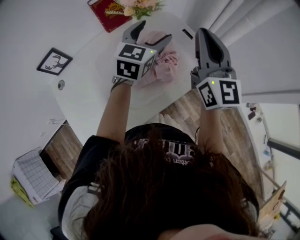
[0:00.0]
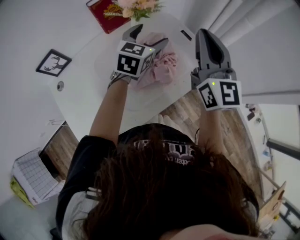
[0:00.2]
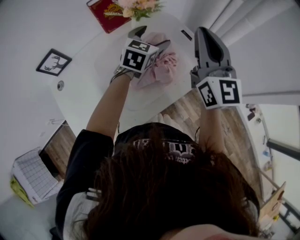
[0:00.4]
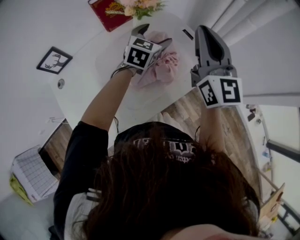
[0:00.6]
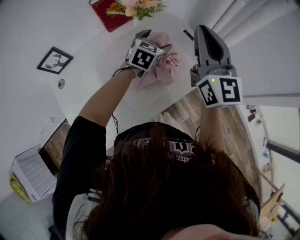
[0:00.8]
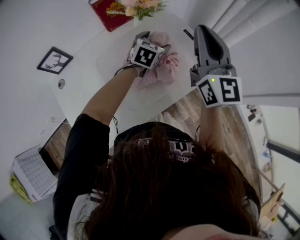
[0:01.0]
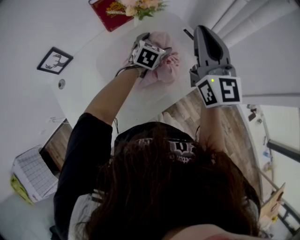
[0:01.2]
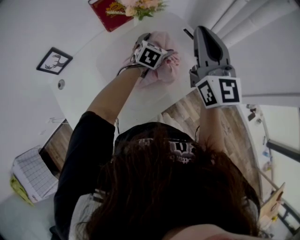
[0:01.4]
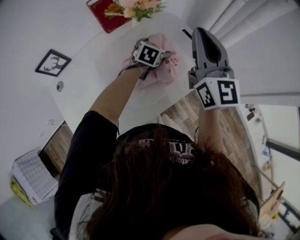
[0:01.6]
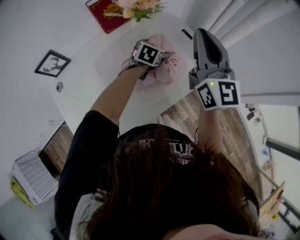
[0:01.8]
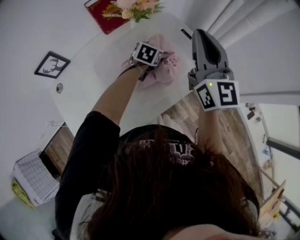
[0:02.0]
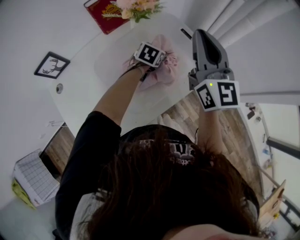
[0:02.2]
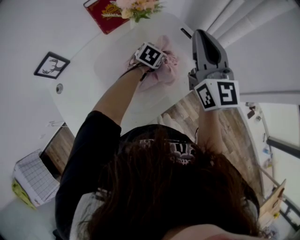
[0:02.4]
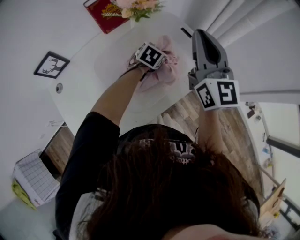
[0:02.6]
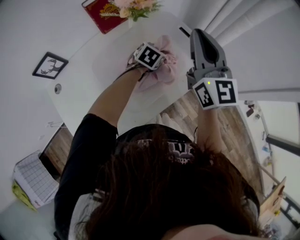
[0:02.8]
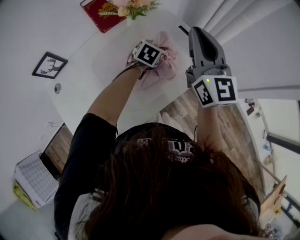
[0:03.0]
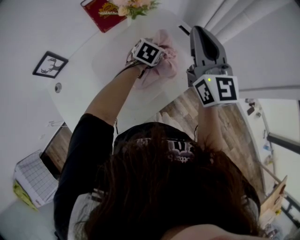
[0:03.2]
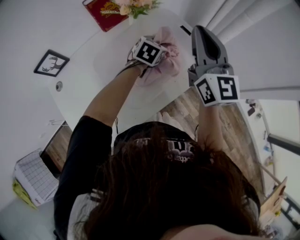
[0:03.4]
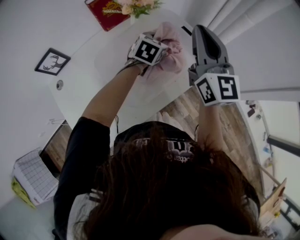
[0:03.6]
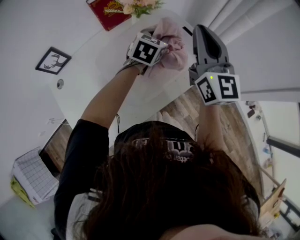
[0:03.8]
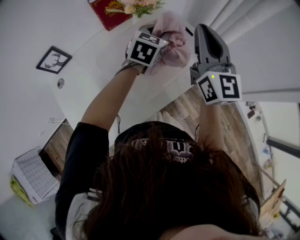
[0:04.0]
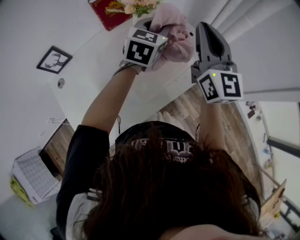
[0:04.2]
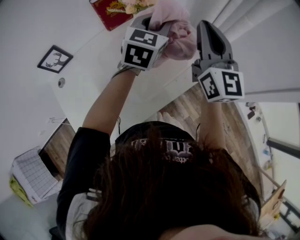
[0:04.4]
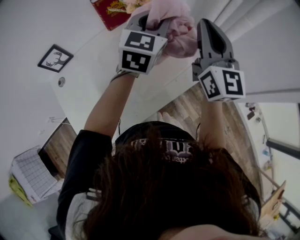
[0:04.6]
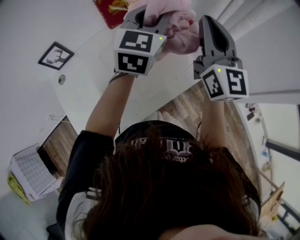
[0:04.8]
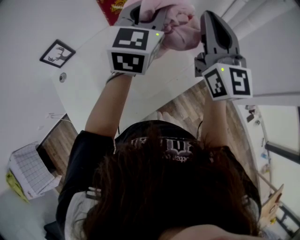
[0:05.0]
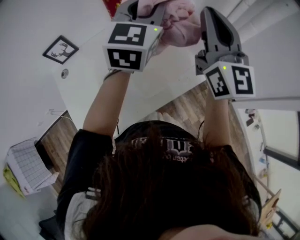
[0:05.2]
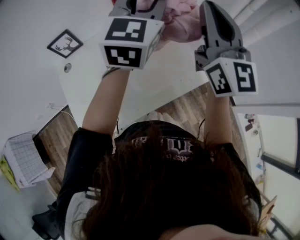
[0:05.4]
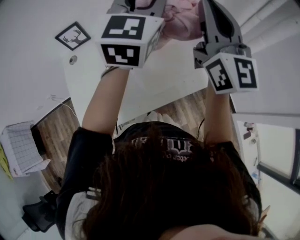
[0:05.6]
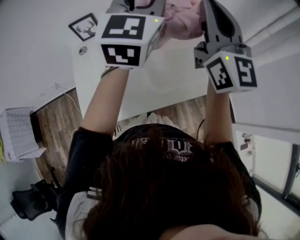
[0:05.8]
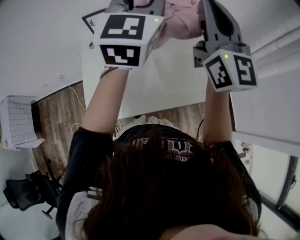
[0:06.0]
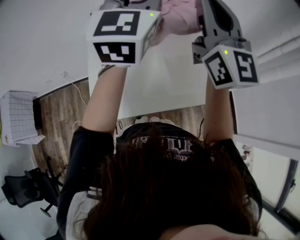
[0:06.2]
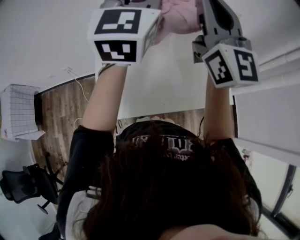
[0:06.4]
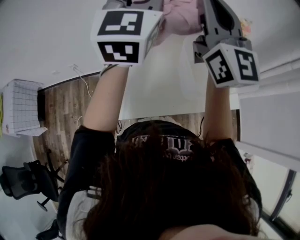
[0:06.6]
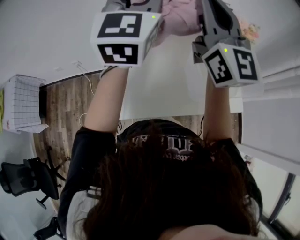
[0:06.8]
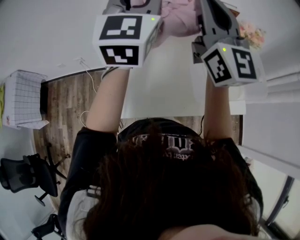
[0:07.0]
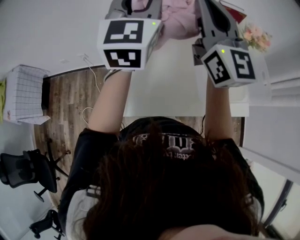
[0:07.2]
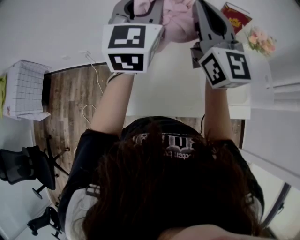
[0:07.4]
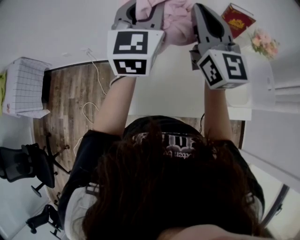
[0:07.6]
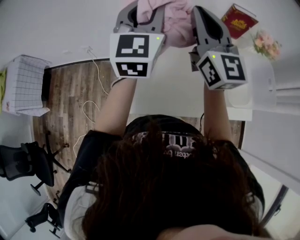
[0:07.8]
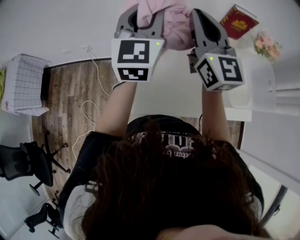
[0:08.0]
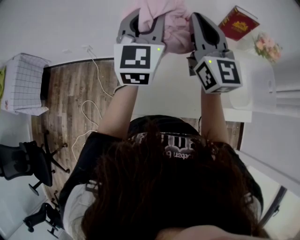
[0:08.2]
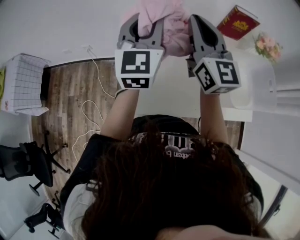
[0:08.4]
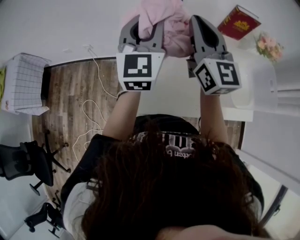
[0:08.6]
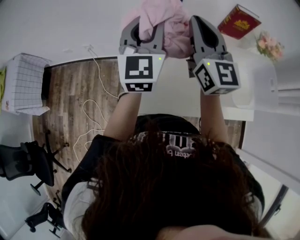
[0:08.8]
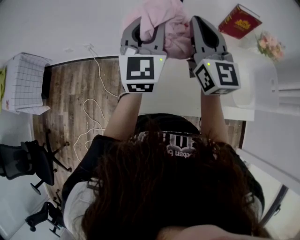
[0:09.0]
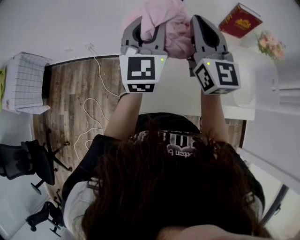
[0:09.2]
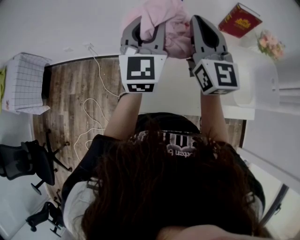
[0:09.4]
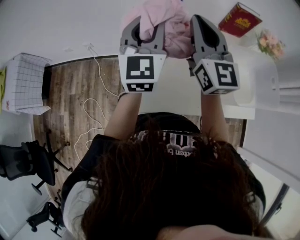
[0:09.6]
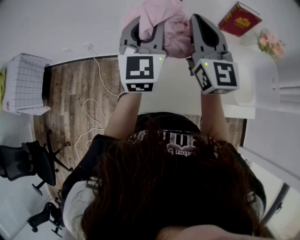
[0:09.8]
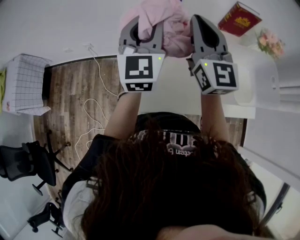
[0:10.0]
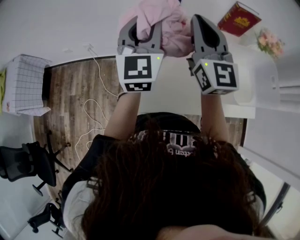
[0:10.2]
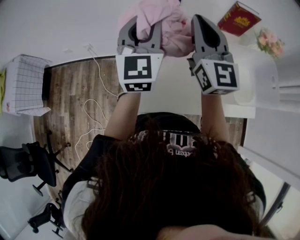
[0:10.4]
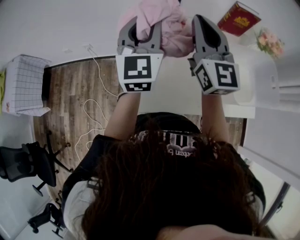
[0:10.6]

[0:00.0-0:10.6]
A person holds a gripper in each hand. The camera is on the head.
0.0 to 1.6 s: The left gripper goes roughly 20 cm downward, and changes its angle by approximately 30 degrees.
1.6 to 3.0 s: The left gripper closes.
3.0 to 4.6 s: The left gripper goes roughly 25 cm upward, and tips its fingers upward by approximately 40 degrees.
4.6 to 6.0 s: The right gripper ends up roughly 20 cm from where it was, and swivels some 30 degrees; the left gripper moves approximately 25 cm, and rotates about 30 degrees.
6.0 to 7.6 s: The grippers both shift to the left by approximately 25 cm.
7.6 to 9.0 s: The grippers both shift downward by about 5 cm.
9.0 to 10.6 s: Both grippers stay about where they are.

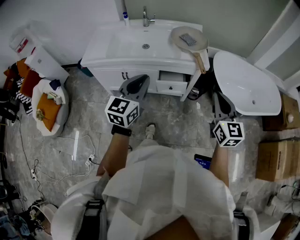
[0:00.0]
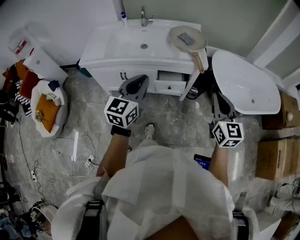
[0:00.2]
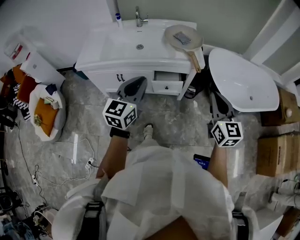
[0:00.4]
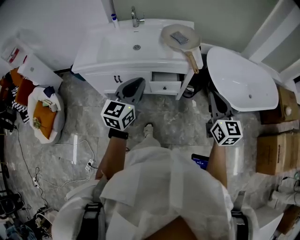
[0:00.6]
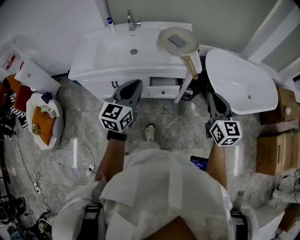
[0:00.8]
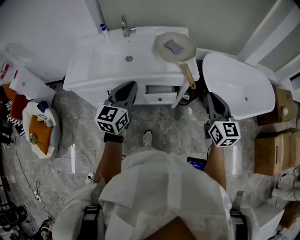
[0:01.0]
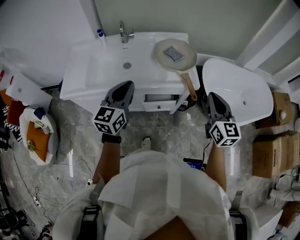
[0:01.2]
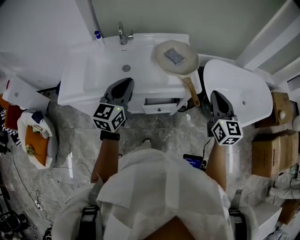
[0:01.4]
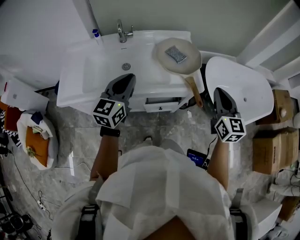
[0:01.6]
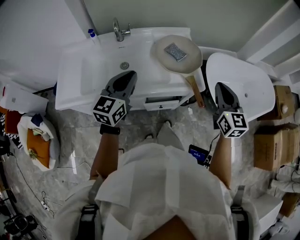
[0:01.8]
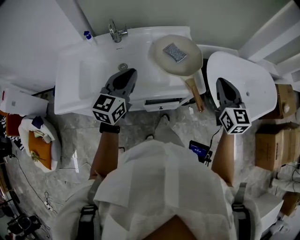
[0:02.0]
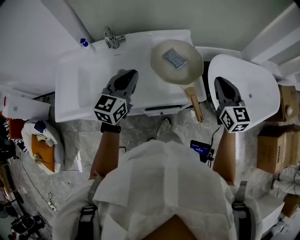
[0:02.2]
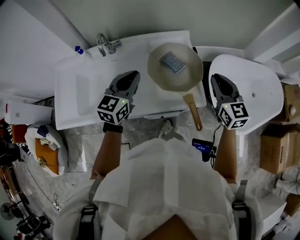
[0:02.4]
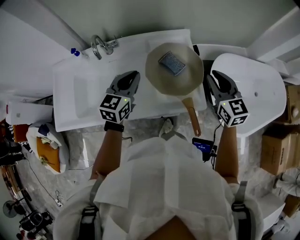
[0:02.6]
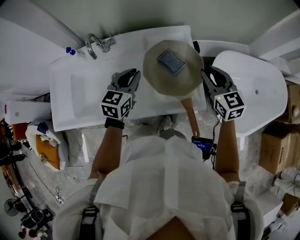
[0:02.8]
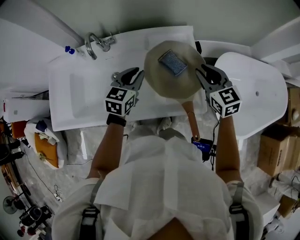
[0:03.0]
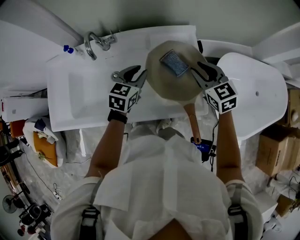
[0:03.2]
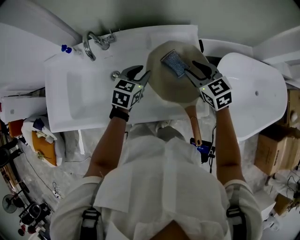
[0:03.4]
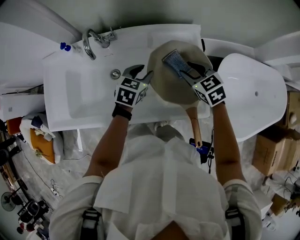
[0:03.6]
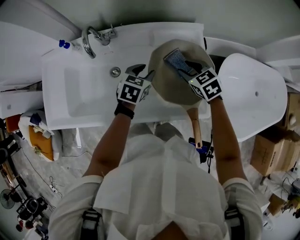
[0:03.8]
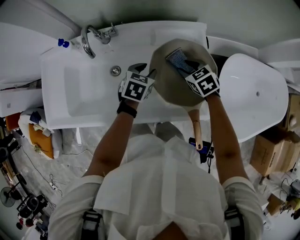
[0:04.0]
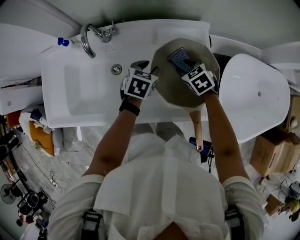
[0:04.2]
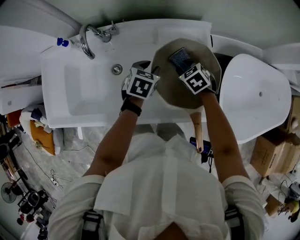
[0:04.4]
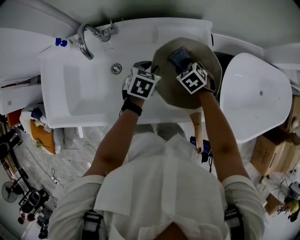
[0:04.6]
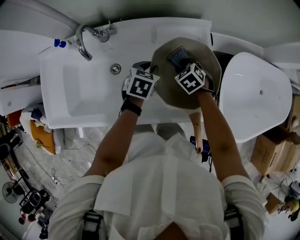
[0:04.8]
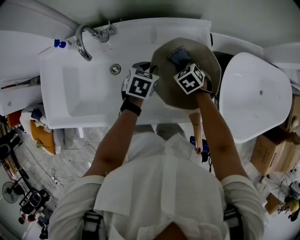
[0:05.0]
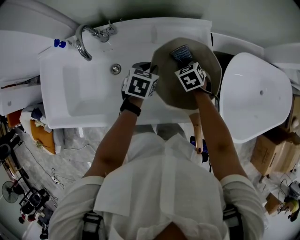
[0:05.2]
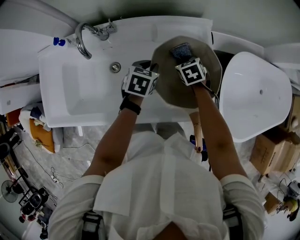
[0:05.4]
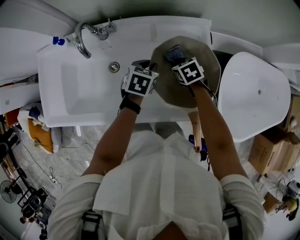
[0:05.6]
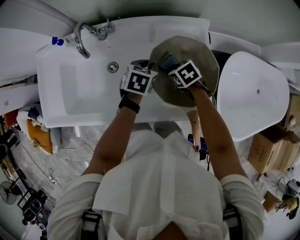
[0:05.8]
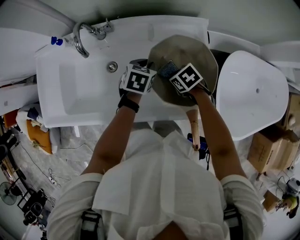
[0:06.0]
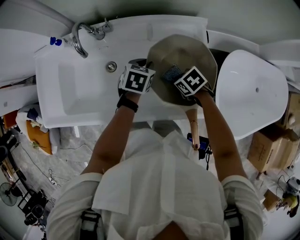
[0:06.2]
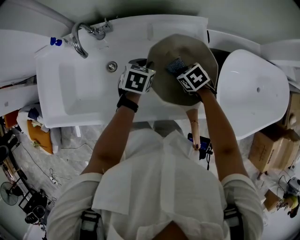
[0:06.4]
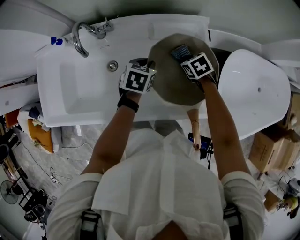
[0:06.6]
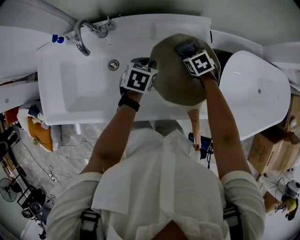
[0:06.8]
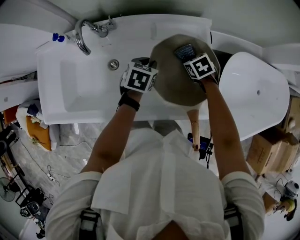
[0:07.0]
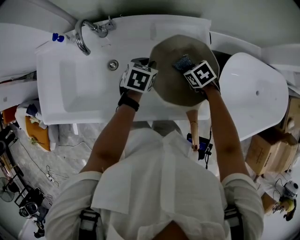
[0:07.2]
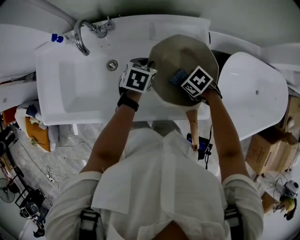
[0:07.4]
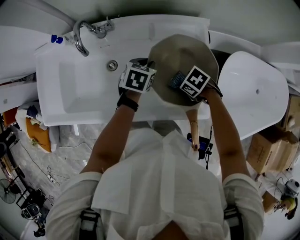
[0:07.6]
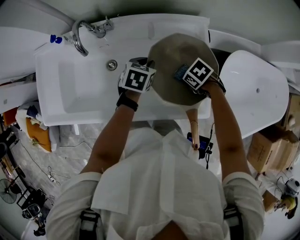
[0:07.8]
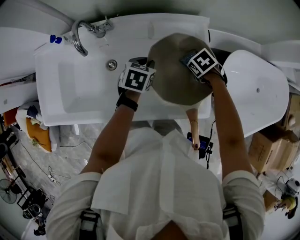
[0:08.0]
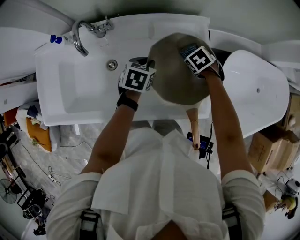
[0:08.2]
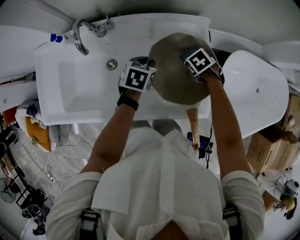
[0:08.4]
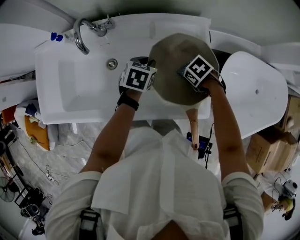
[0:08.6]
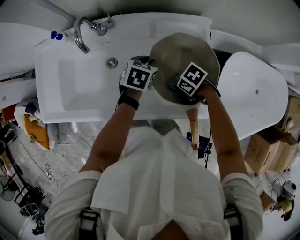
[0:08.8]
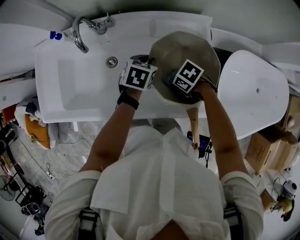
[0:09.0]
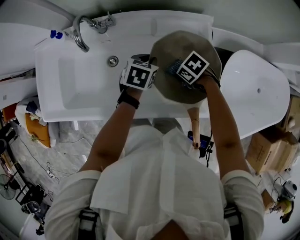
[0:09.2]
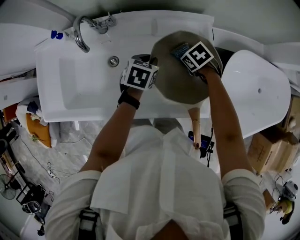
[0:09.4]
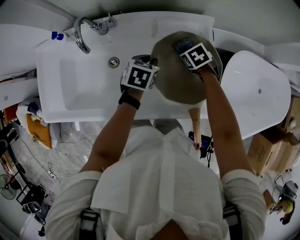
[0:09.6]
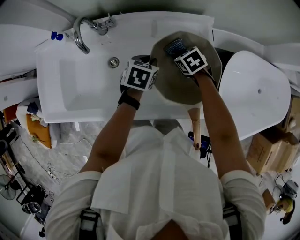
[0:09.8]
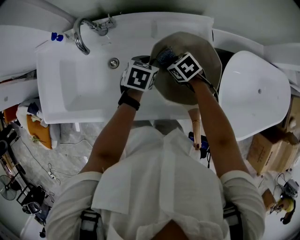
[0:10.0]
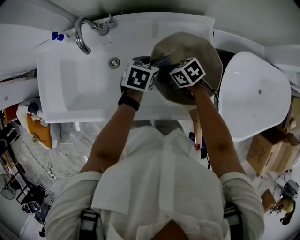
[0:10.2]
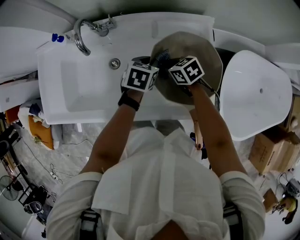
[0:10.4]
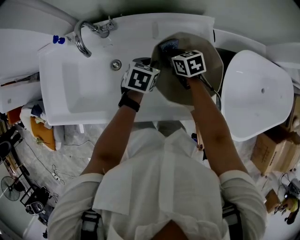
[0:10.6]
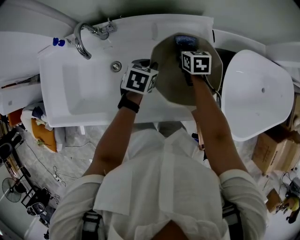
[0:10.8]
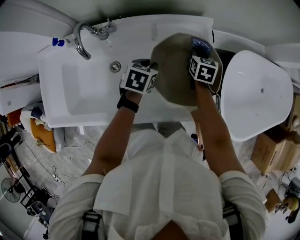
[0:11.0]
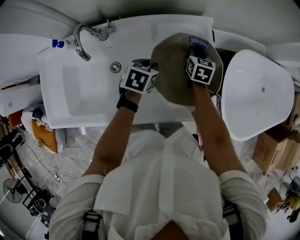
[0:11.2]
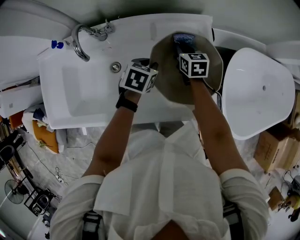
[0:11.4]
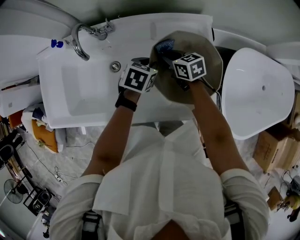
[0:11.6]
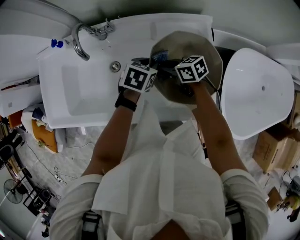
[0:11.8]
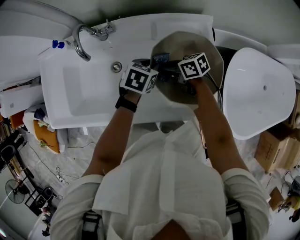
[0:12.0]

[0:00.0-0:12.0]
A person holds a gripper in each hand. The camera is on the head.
0.0 to 1.6 s: The grippers both shift forward by about 25 cm.
1.6 to 3.0 s: The left gripper heads forward and downward, covering about 30 cm, and turns by roughly 20 degrees. Meanwhile the right gripper travels forward by approximately 30 cm, and changes its angle by approximately 30 degrees.
3.0 to 4.4 s: The left gripper heads downward and forward, covering about 15 cm, and changes its angle by approximately 30 degrees; the right gripper travels downward, to the left and forward by approximately 25 cm, and angles its fingers downward, by approximately 40 degrees.
4.4 to 6.0 s: The right gripper shifts by roughly 10 cm, rotates roughly 20 degrees, and closes up.
9.0 to 10.4 s: The right gripper shifts by some 10 cm, and turns by some 40 degrees.
10.4 to 12.0 s: The right gripper rotates about 30 degrees.

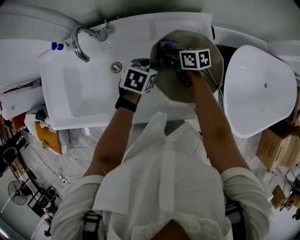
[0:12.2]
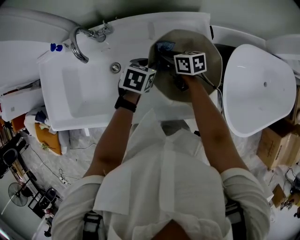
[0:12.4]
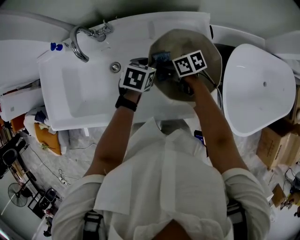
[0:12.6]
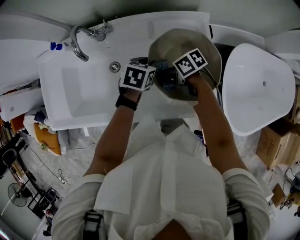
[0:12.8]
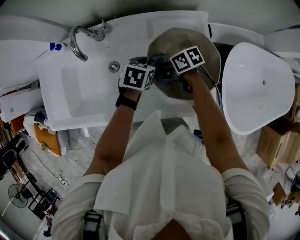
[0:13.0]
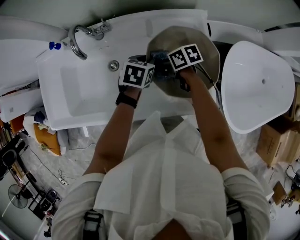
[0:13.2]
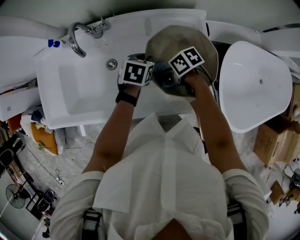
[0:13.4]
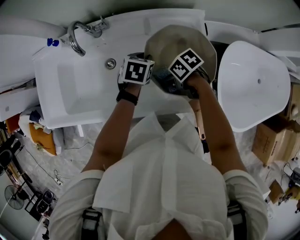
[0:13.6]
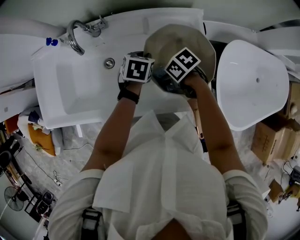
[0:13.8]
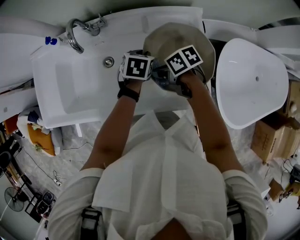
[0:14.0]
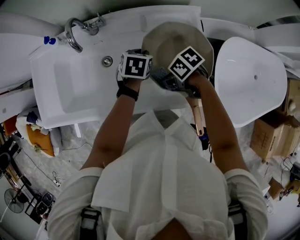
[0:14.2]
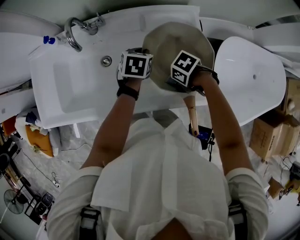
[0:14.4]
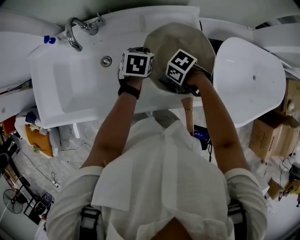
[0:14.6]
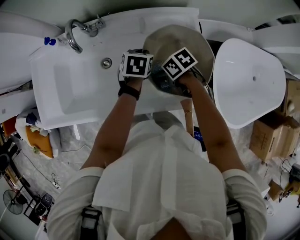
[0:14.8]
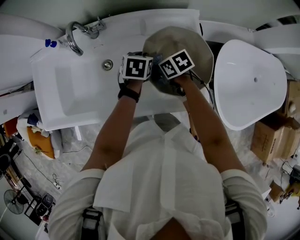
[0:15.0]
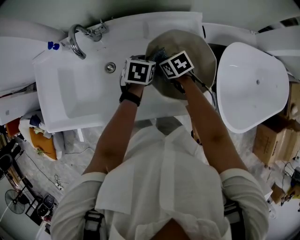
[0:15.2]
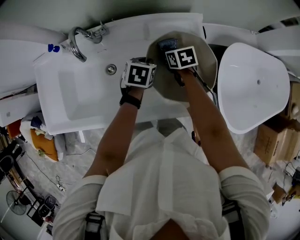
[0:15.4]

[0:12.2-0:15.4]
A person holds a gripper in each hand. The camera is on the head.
12.2 to 13.8 s: The right gripper moves roughly 15 cm, and rotates approximately 40 degrees.
13.8 to 15.4 s: The right gripper ends up some 15 cm from where it was, and rotates about 40 degrees.
